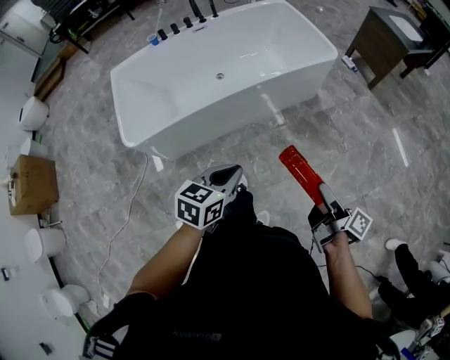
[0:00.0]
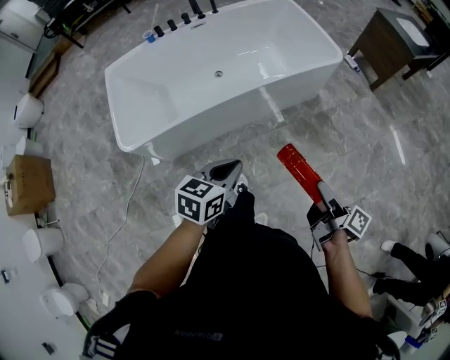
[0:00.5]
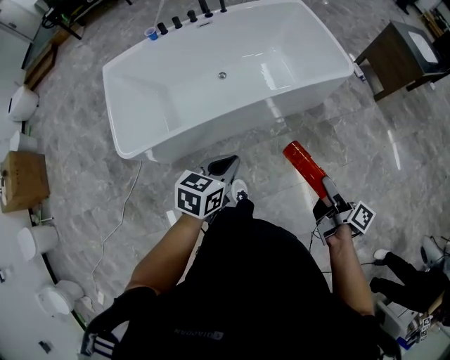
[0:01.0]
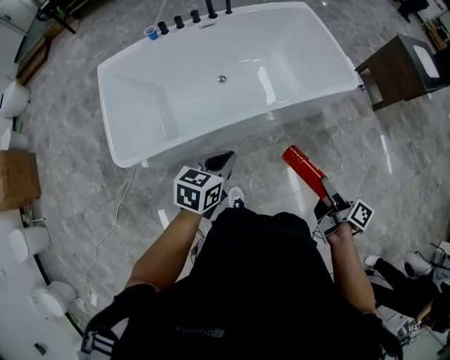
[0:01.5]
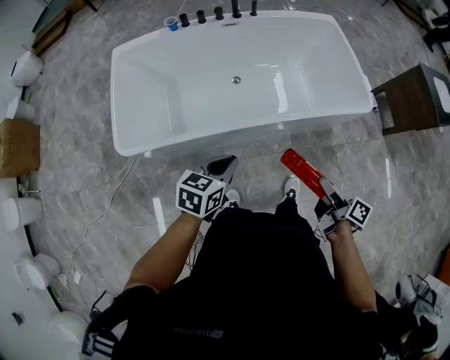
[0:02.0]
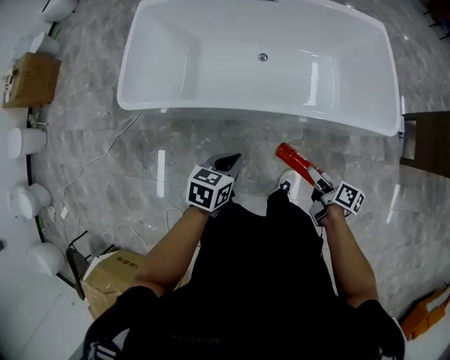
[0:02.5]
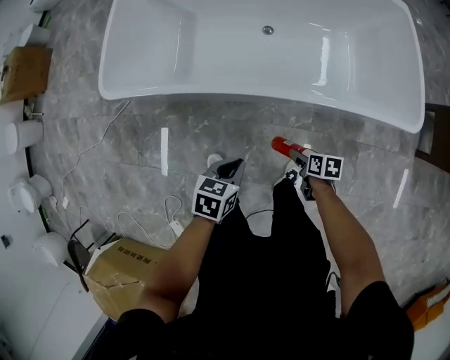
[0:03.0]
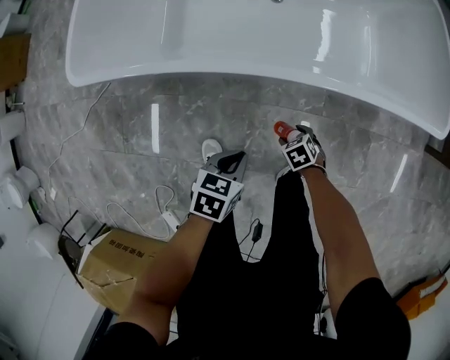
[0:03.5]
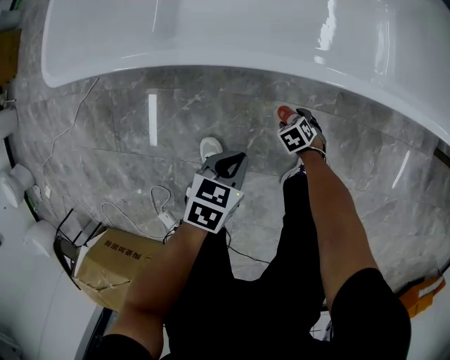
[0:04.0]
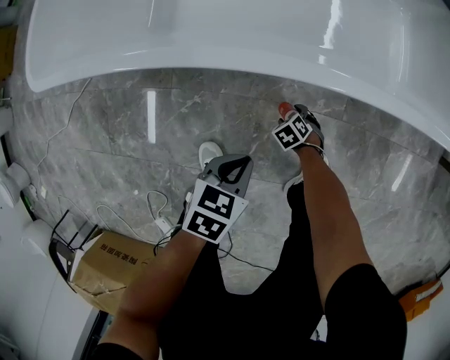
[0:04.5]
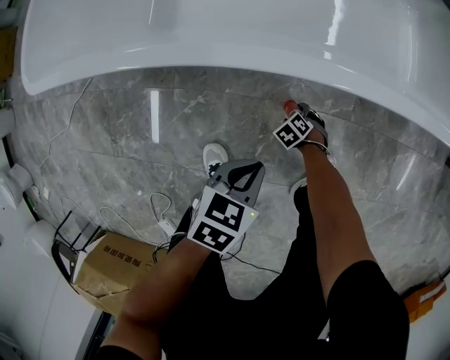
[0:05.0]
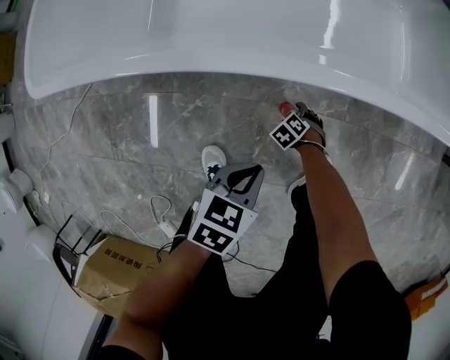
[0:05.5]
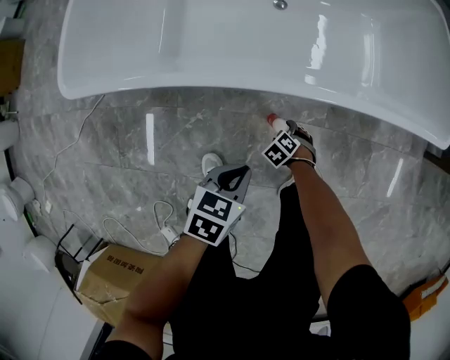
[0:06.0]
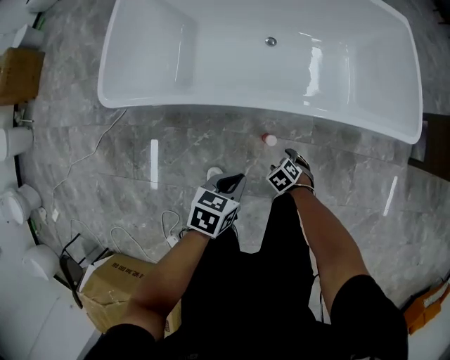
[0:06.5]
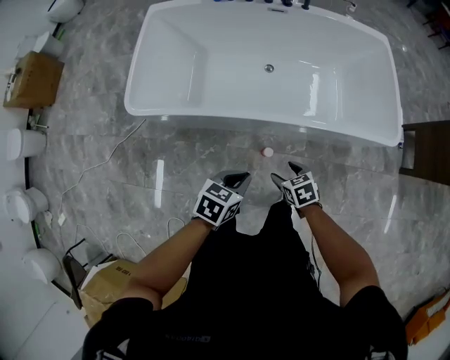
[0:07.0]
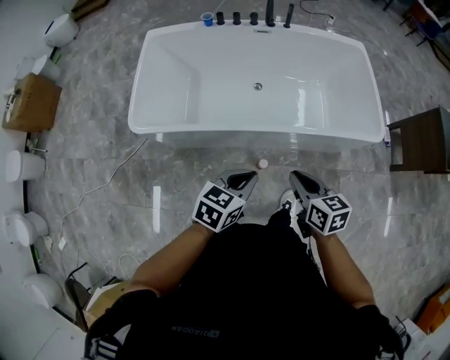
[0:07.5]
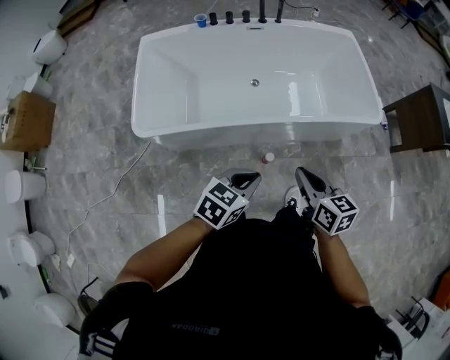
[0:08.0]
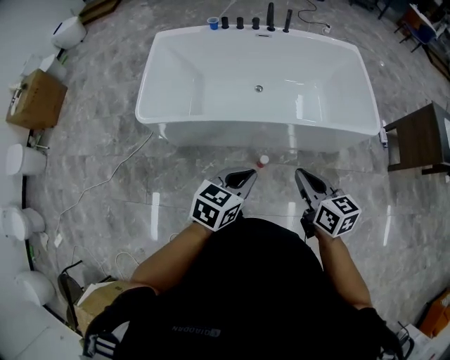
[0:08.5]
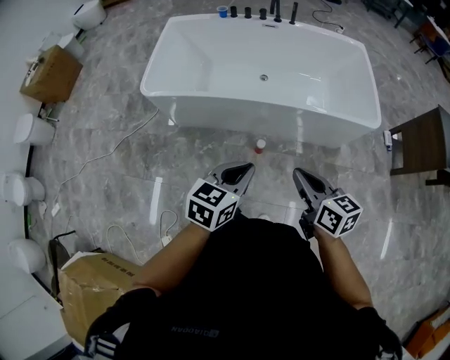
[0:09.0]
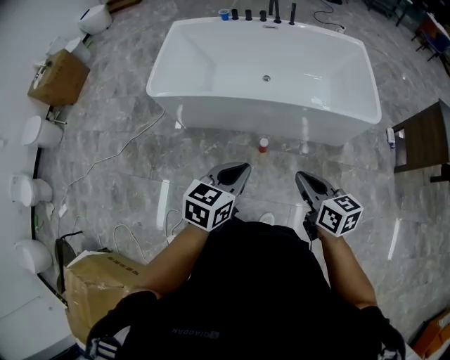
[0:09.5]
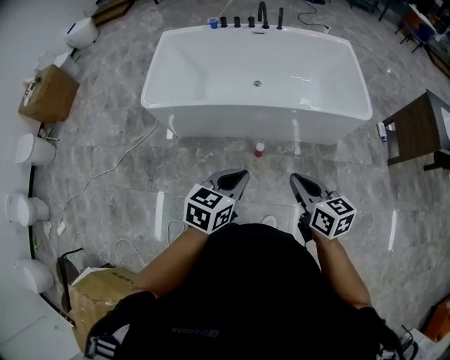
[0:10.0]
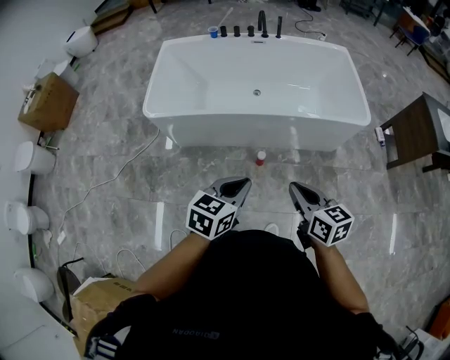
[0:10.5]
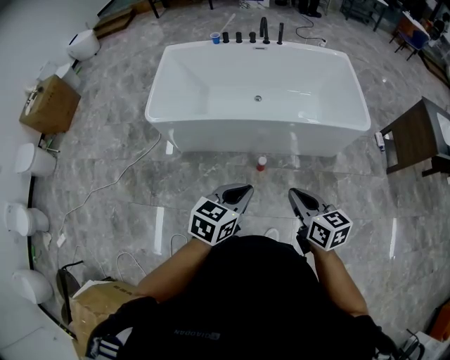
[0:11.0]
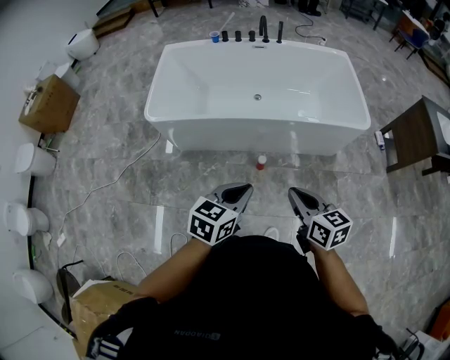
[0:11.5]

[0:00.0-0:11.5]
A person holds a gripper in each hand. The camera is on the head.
0.0 to 2.0 s: The right gripper goes some 30 cm forward, and changes its angle by roughly 30 degrees. Meanwhile the left gripper moves forward and to the left, some 30 cm.
2.0 to 4.0 s: The left gripper heads downward, covering about 40 cm, and changes its angle by about 30 degrees; the right gripper shifts some 60 cm downward, and points its fingers about 60 degrees further downward.
4.0 to 6.0 s: The right gripper reaches about 10 cm downward, then returns, while the left gripper is displaced upward by some 5 cm.
6.0 to 7.5 s: The right gripper moves upward, roughly 60 cm, tilts its fingers approximately 50 degrees upward, and closes up. Meanwhile the left gripper heads upward, covering roughly 35 cm, and turns by some 20 degrees.
7.5 to 9.5 s: The right gripper heads backward and to the right, covering about 25 cm. The left gripper travels backward by approximately 20 cm.
9.5 to 11.5 s: The right gripper moves to the left, some 5 cm.

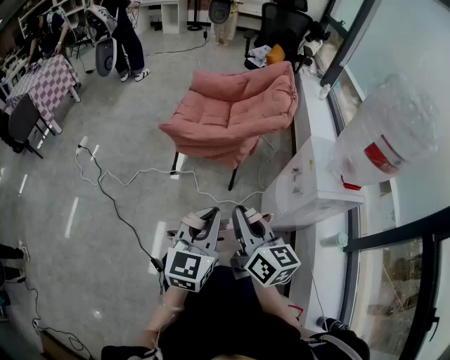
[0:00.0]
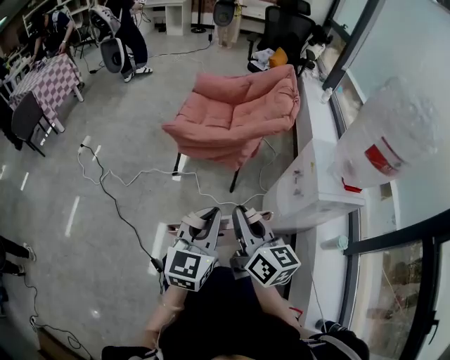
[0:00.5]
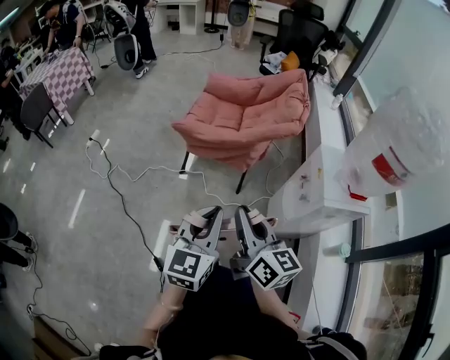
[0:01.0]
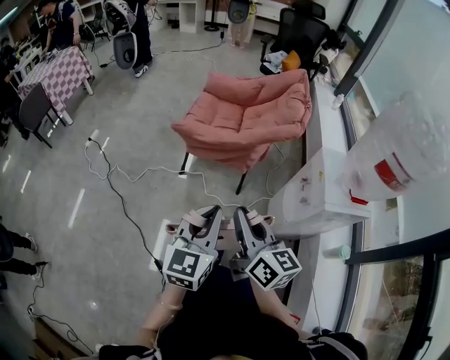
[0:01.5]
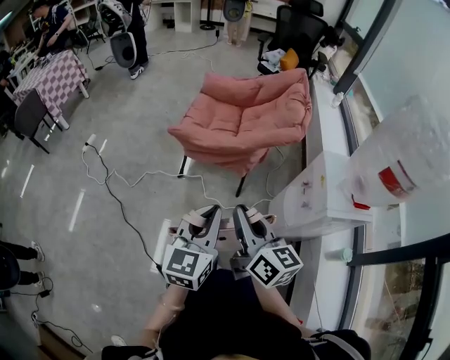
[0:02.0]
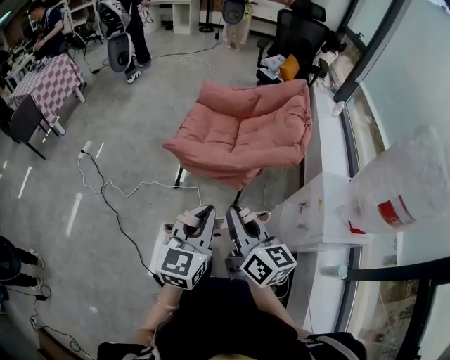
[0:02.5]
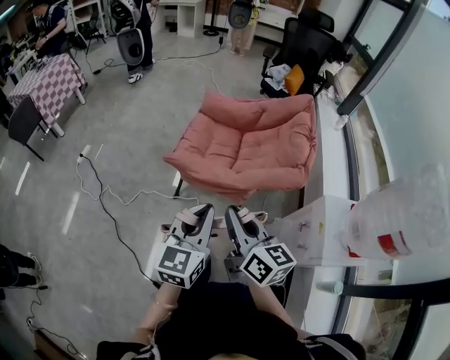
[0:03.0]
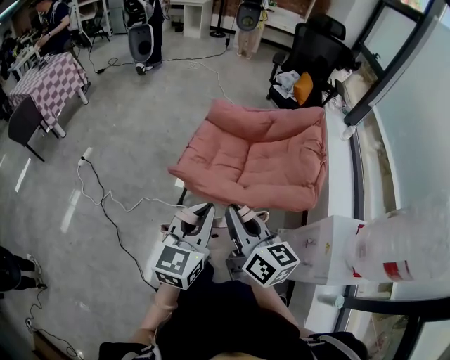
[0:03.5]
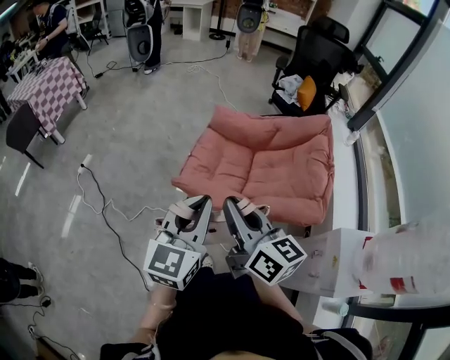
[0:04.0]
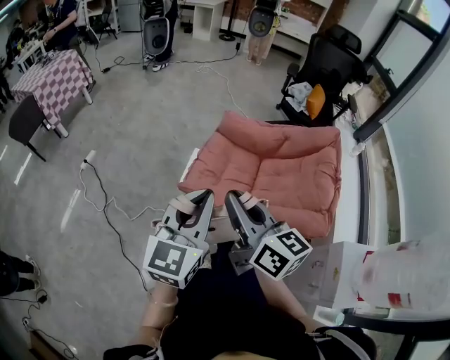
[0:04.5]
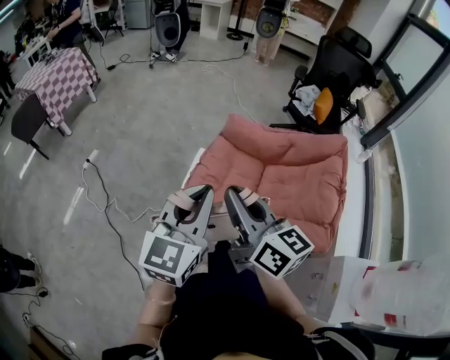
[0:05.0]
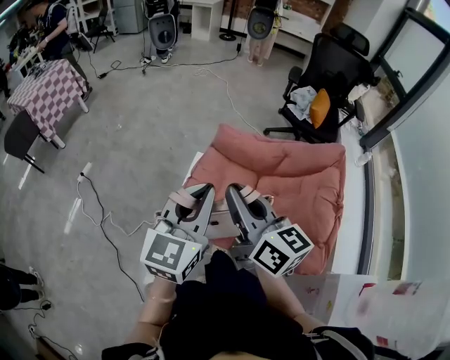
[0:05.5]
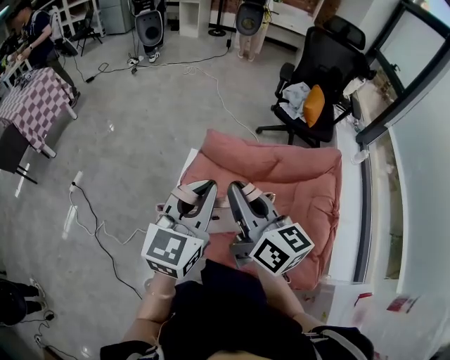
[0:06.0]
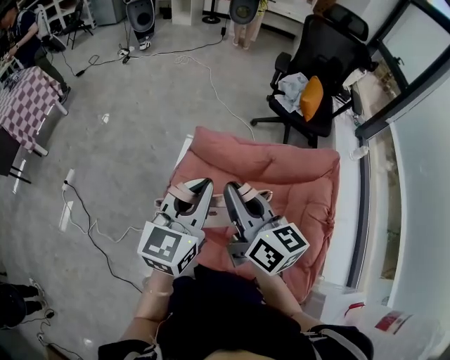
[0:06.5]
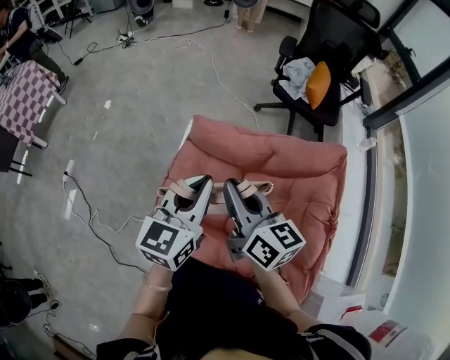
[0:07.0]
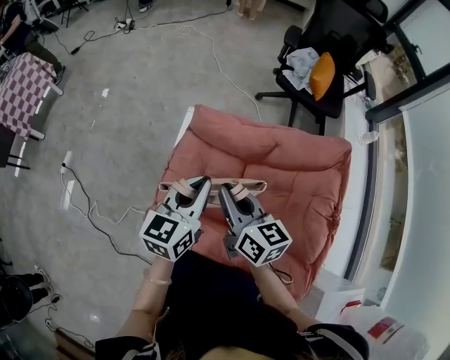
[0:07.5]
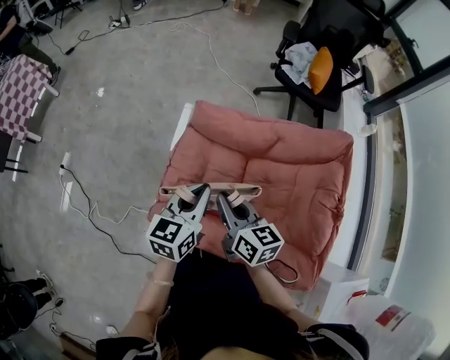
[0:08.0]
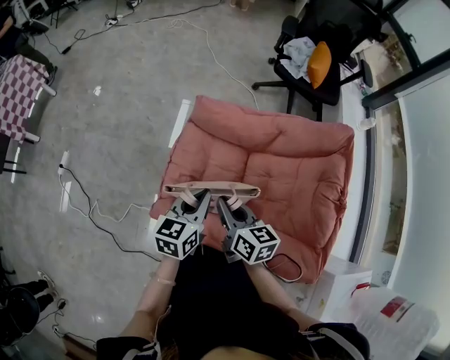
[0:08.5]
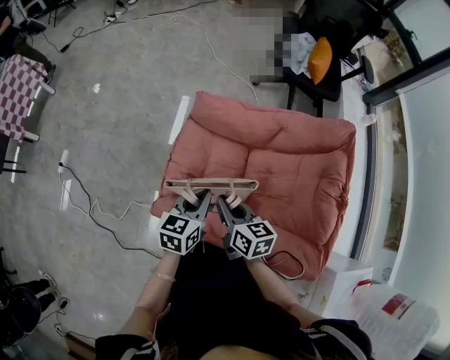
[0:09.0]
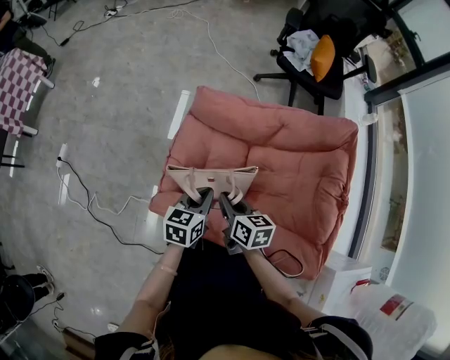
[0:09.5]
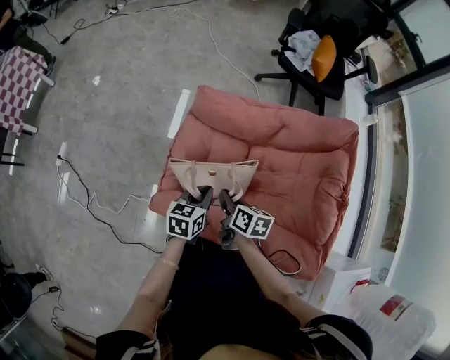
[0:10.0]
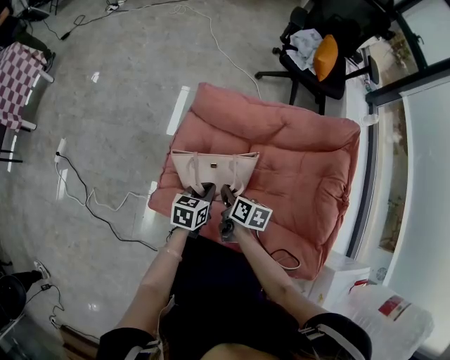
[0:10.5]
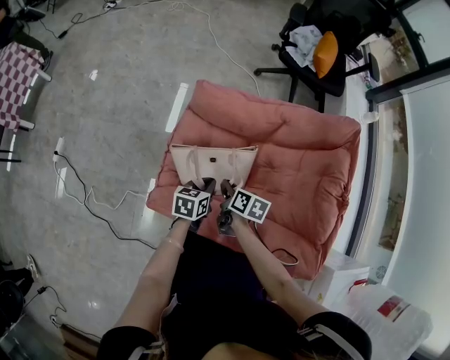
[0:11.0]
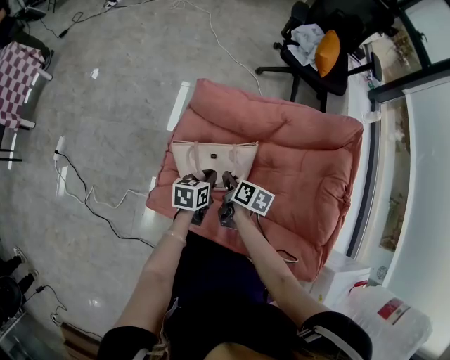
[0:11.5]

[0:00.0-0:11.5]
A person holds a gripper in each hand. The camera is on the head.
0.0 to 2.0 s: The grippers both shift forward by about 5 cm.
2.0 to 4.0 s: The two grippers go approximately 35 cm forward.
4.0 to 6.0 s: The two grippers go some 30 cm forward.
6.0 to 7.5 s: Both grippers travel together downward and forward, roughly 20 cm.
7.5 to 9.5 s: The grippers both shift downward by some 15 cm. The right gripper rotates some 20 degrees, while the left gripper rotates roughly 20 degrees.
9.5 to 11.5 s: Both grippers move downward and forward, about 10 cm. The right gripper rotates about 20 degrees.

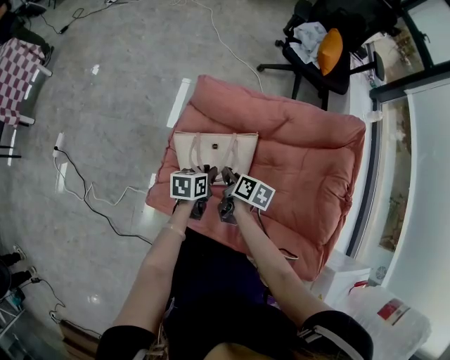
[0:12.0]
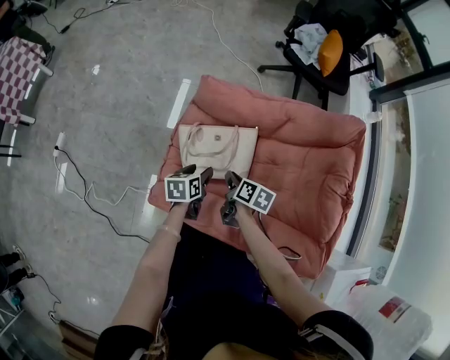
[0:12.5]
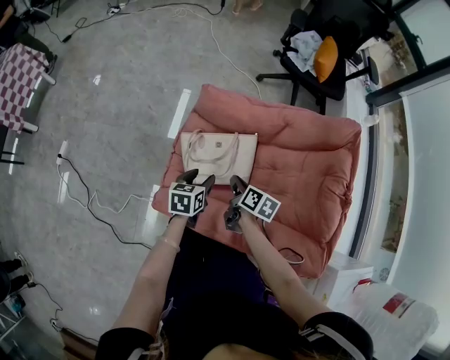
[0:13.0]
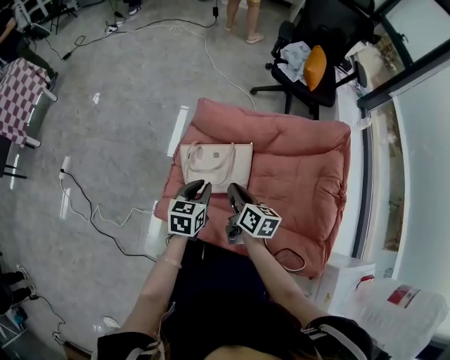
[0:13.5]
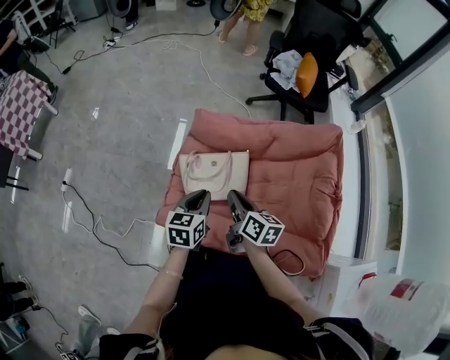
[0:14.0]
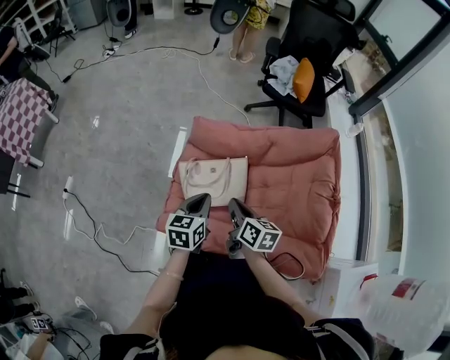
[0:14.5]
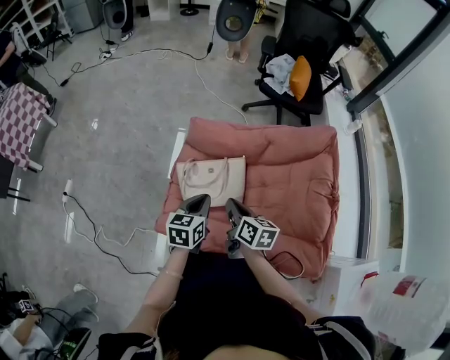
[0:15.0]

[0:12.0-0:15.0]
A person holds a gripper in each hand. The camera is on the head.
12.0 to 13.5 s: The right gripper moves upward and backward, approximately 15 cm, and changes its angle by about 20 degrees; the left gripper travels upward by approximately 10 cm, rotates roughly 30 degrees, and opens, then closes once more.
13.5 to 15.0 s: The left gripper ends up some 5 cm from where it was.

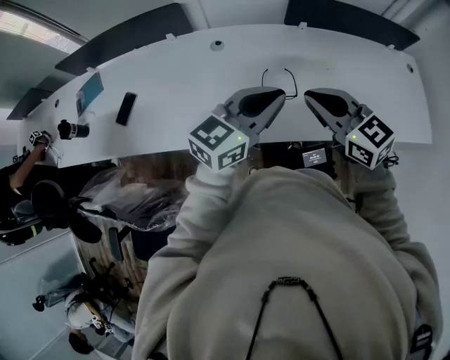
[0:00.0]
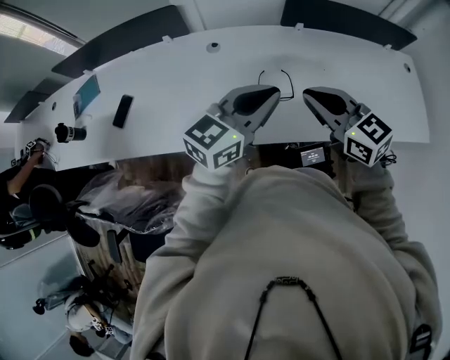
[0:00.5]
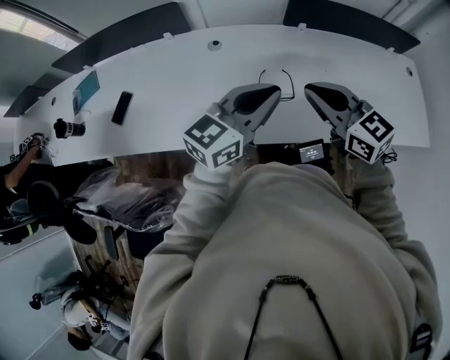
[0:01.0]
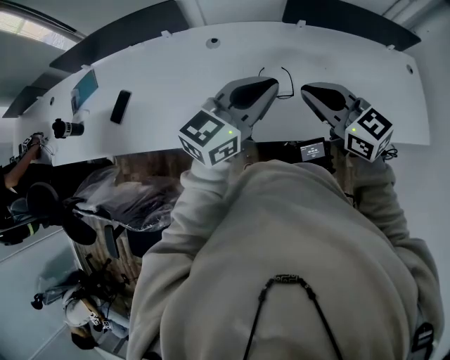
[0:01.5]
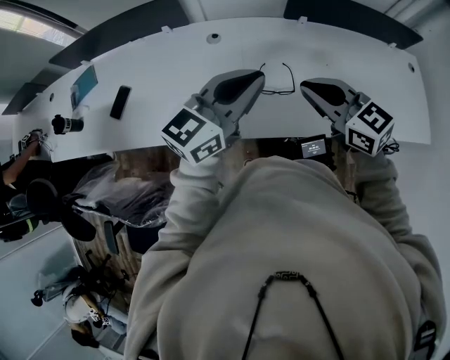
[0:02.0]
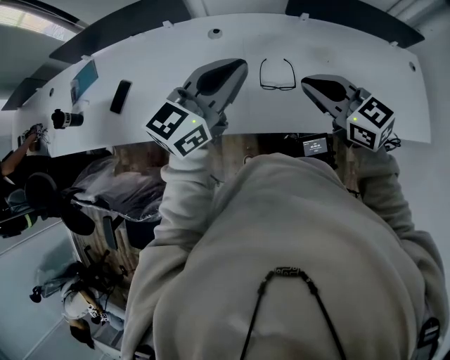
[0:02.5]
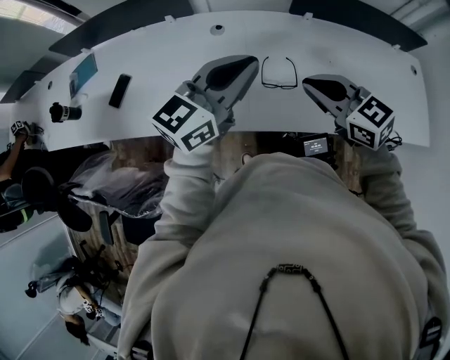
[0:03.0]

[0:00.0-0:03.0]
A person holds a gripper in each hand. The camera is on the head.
0.0 to 1.5 s: The grippers make only small movements.
1.5 to 3.0 s: The left gripper heads to the left, covering approximately 5 cm.
